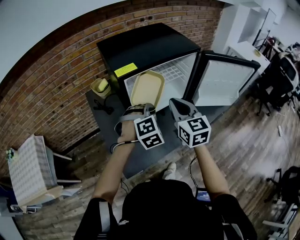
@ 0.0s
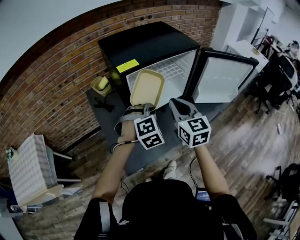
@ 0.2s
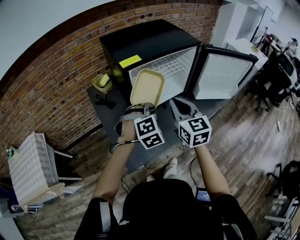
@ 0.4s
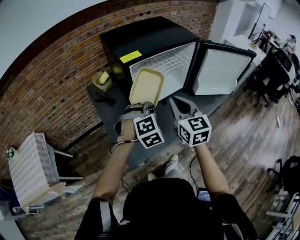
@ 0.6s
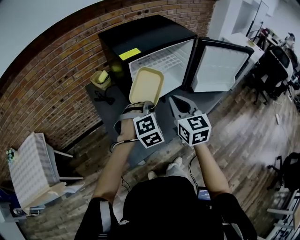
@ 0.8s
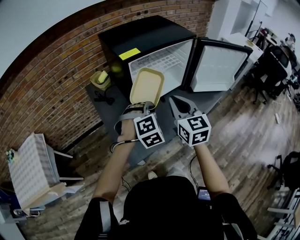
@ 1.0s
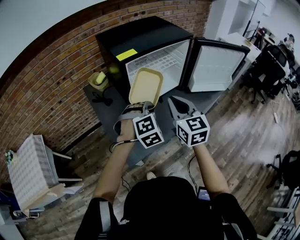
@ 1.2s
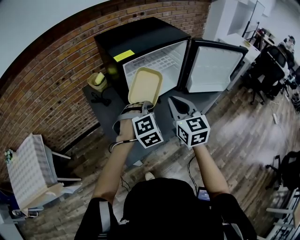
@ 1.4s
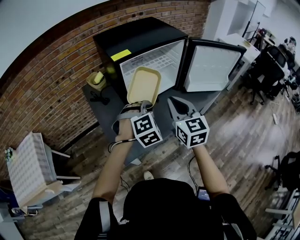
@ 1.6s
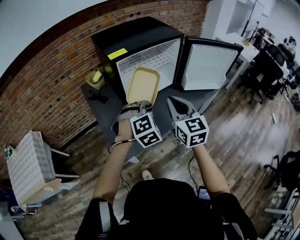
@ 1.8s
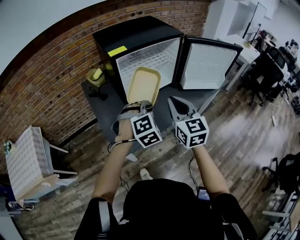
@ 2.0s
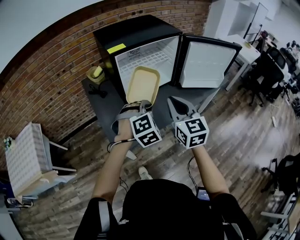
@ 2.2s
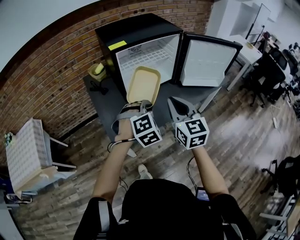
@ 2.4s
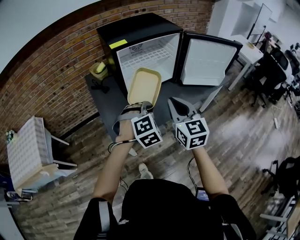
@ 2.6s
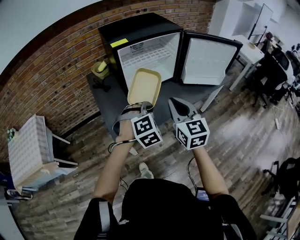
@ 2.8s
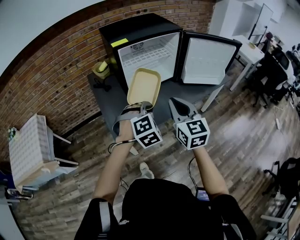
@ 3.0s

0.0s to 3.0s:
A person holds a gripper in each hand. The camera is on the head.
0.0s to 1.6s: Both grippers travel together backward, roughly 10 cm.
1.6s to 3.0s: Both grippers travel together backward, about 10 cm.

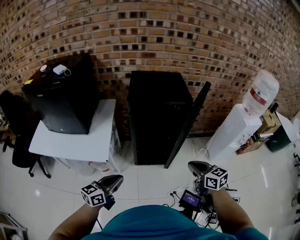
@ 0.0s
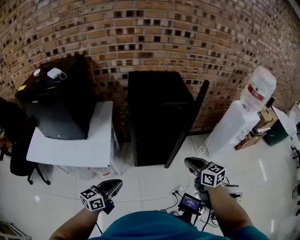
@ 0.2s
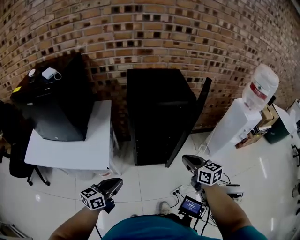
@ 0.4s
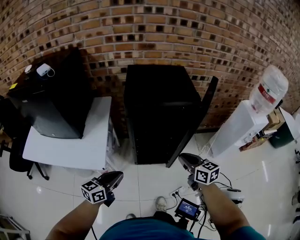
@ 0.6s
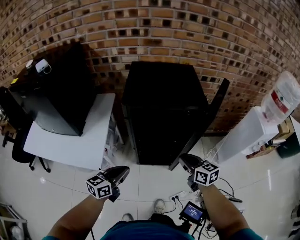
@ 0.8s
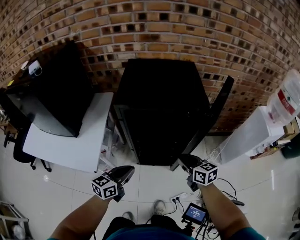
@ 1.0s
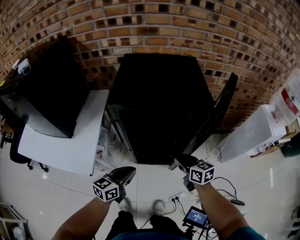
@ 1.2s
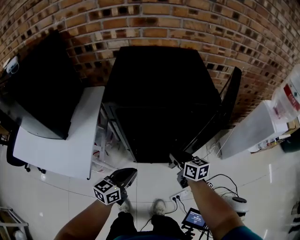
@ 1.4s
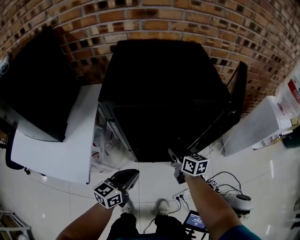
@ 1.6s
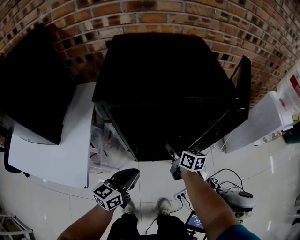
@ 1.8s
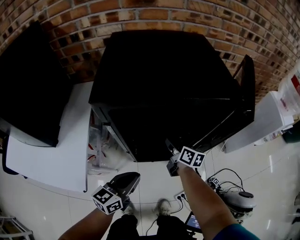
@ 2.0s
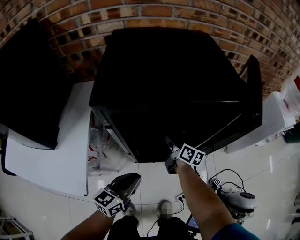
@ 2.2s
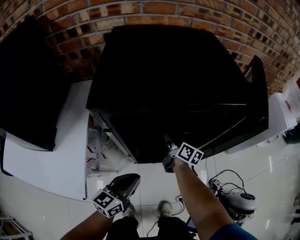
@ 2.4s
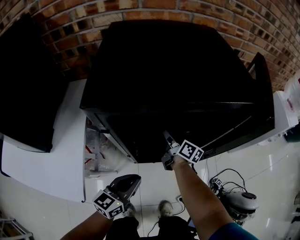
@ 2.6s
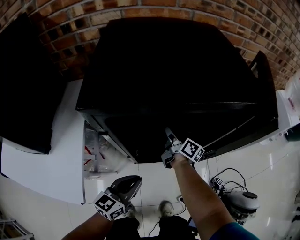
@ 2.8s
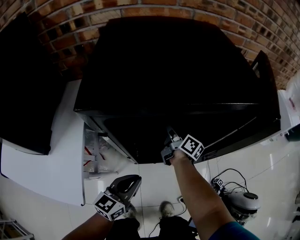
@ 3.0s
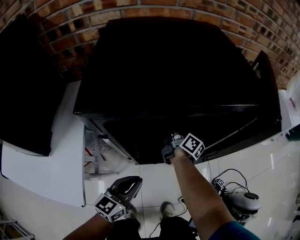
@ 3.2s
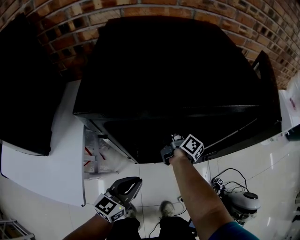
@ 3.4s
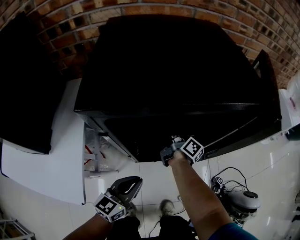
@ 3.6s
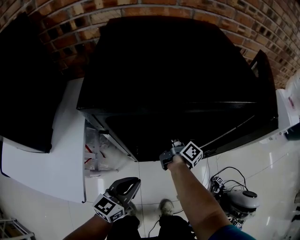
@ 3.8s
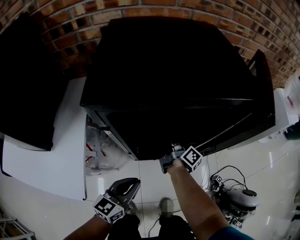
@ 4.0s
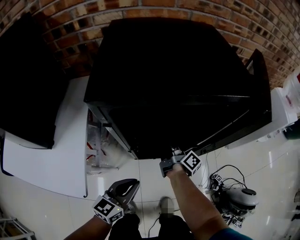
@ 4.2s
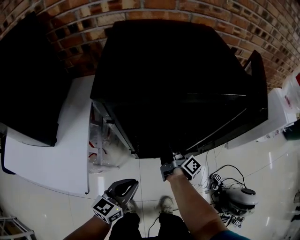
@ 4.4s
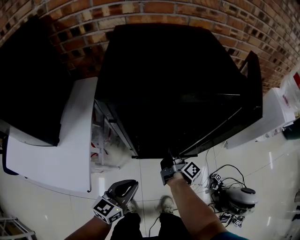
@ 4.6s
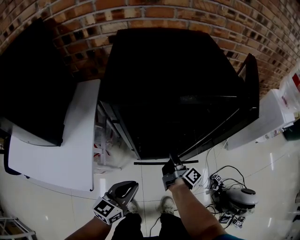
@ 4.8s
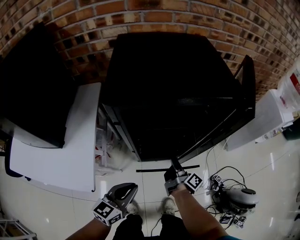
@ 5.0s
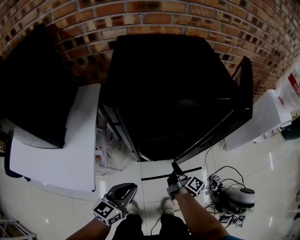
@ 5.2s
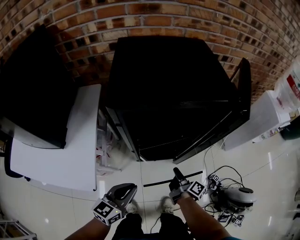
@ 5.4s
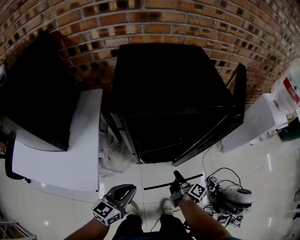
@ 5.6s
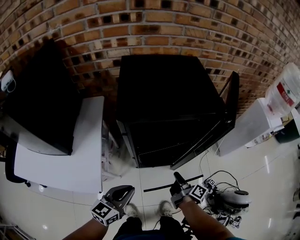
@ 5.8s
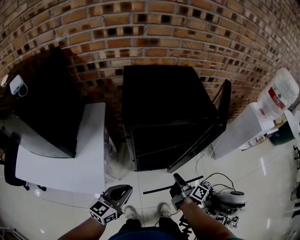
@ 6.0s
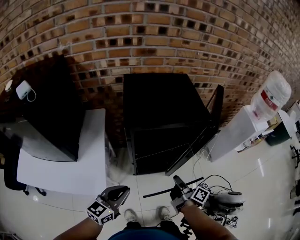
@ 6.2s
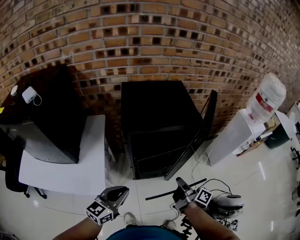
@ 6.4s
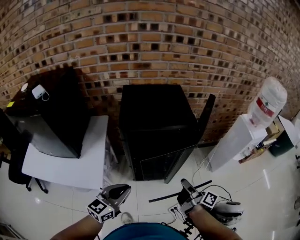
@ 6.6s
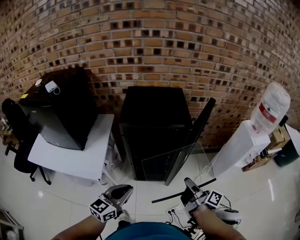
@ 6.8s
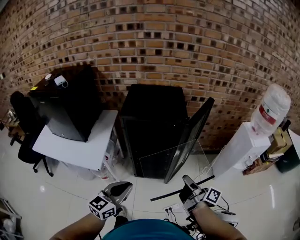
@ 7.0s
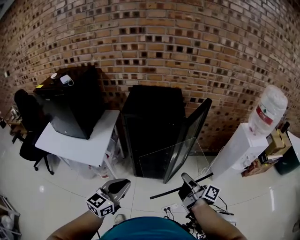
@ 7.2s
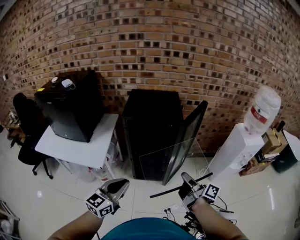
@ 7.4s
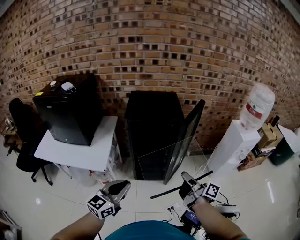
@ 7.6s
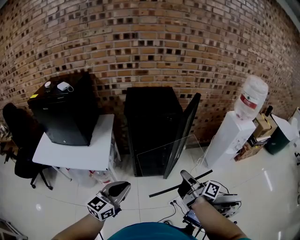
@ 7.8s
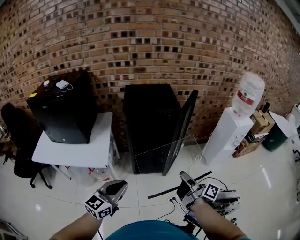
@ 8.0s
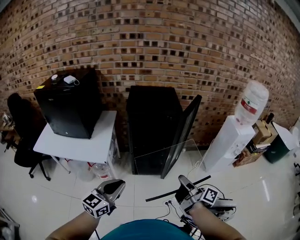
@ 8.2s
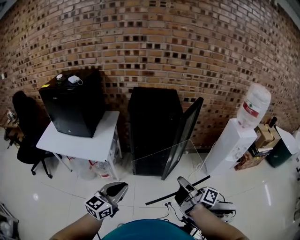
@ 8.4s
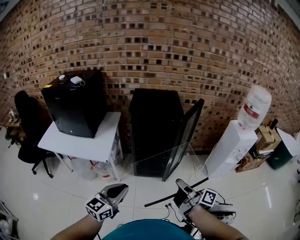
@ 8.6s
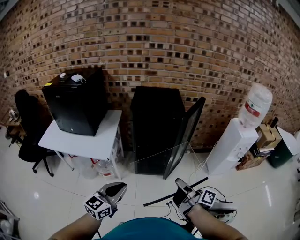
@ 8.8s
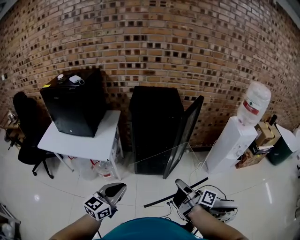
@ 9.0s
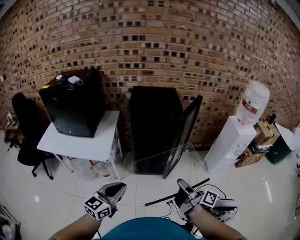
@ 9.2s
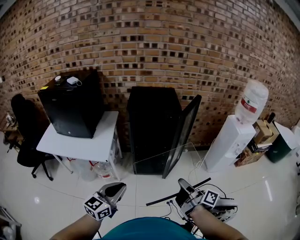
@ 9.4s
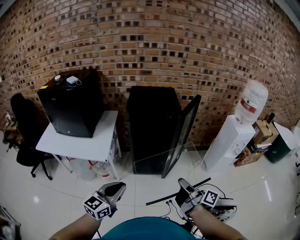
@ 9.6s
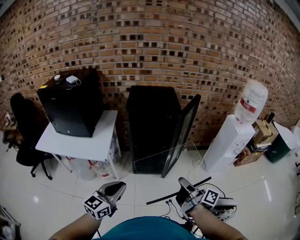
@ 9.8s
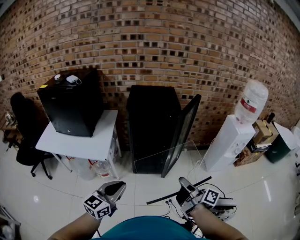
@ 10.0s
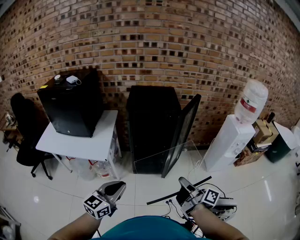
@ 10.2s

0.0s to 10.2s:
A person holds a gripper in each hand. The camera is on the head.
0.0s to 1.4s: The left gripper shifts about 25 cm forward, downward and to the right. Meanwhile the right gripper travels forward and downward by approximately 30 cm, and opens.
1.4s to 3.0s: The left gripper travels downward by roughly 5 cm, while the right gripper shifts about 20 cm forward and downward, turns by approximately 50 degrees, and opens its fingers.
3.0s to 4.4s: The left gripper travels backward by roughly 5 cm; the right gripper travels backward by roughly 10 cm, changes its angle by some 20 degrees, and closes.
4.4s to 5.8s: The left gripper heads upward, covering about 10 cm. The right gripper is displaced backward and to the right by roughly 15 cm.
5.8s to 7.2s: The left gripper heads upward, backward and to the right, covering some 25 cm; the right gripper travels upward, to the right and backward by some 35 cm, and turns by about 30 degrees.
7.2s to 8.8s: The grippers both shift backward and to the left by approximately 15 cm.
8.8s to 10.2s: The grippers make only small movements.

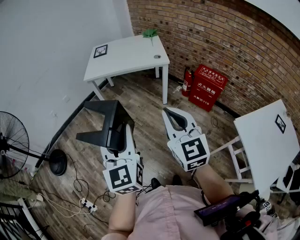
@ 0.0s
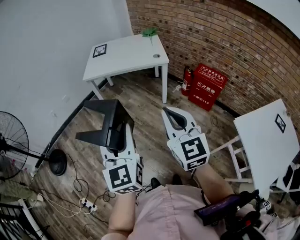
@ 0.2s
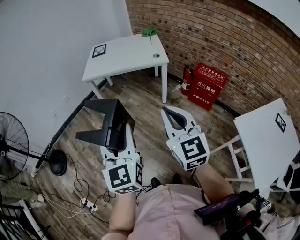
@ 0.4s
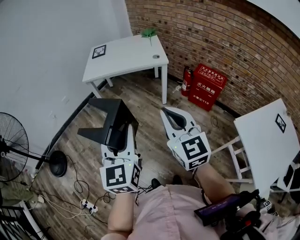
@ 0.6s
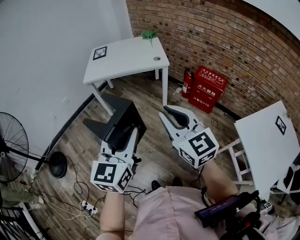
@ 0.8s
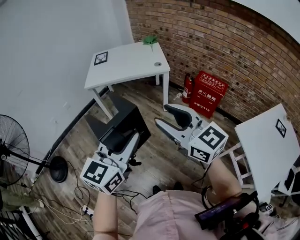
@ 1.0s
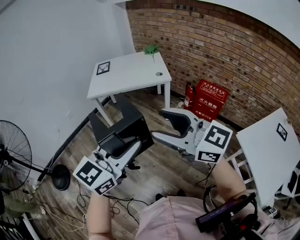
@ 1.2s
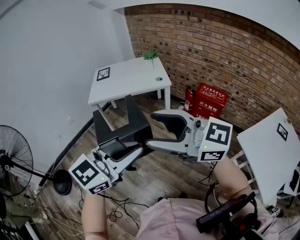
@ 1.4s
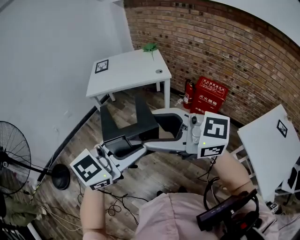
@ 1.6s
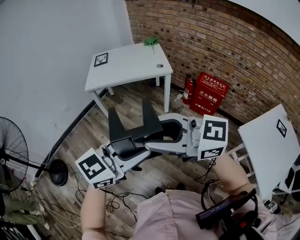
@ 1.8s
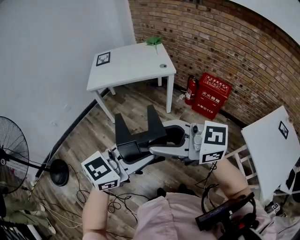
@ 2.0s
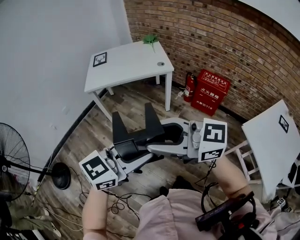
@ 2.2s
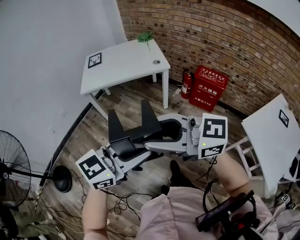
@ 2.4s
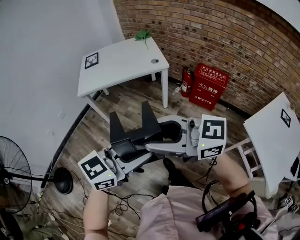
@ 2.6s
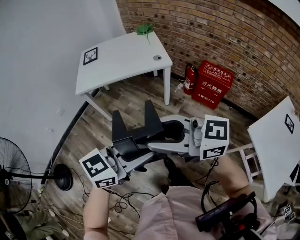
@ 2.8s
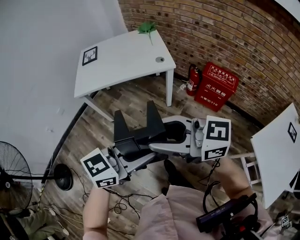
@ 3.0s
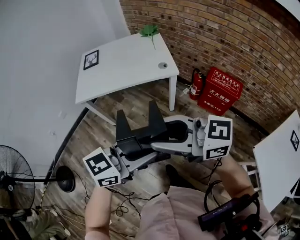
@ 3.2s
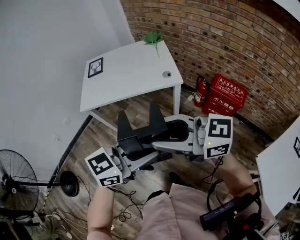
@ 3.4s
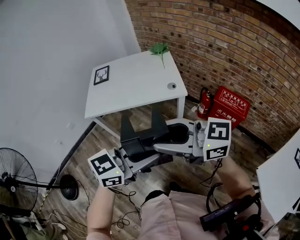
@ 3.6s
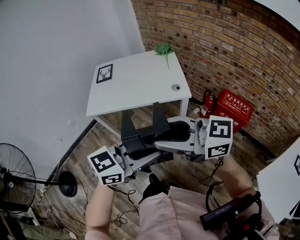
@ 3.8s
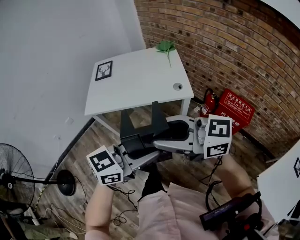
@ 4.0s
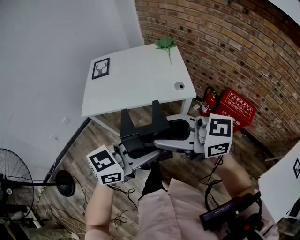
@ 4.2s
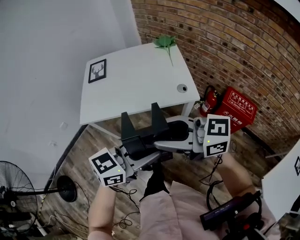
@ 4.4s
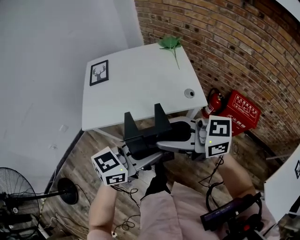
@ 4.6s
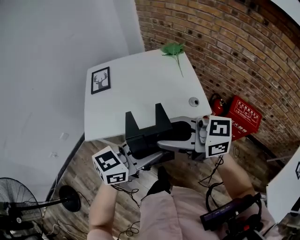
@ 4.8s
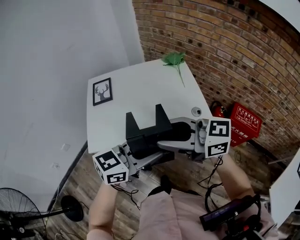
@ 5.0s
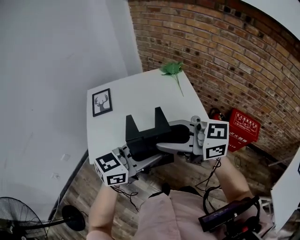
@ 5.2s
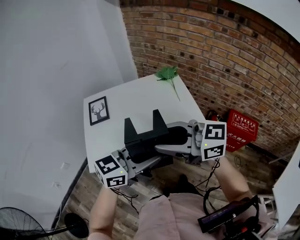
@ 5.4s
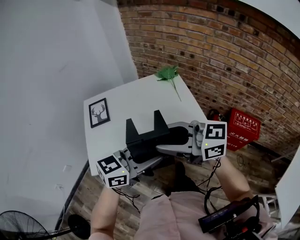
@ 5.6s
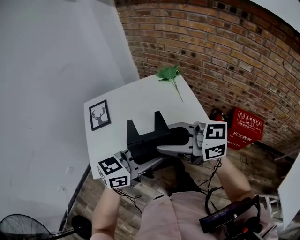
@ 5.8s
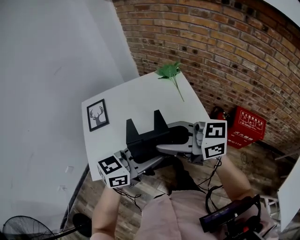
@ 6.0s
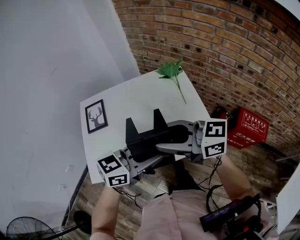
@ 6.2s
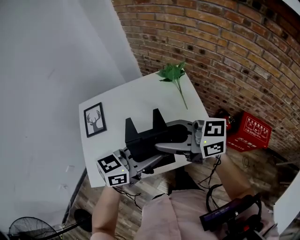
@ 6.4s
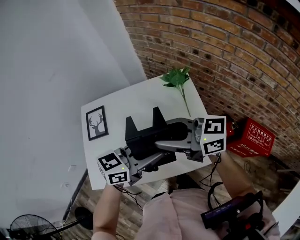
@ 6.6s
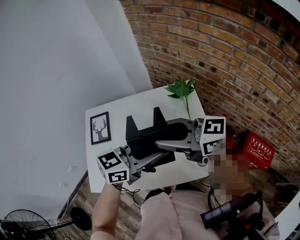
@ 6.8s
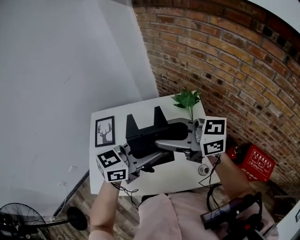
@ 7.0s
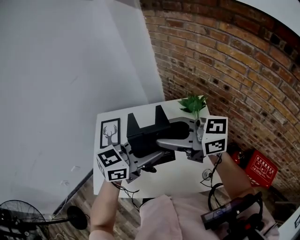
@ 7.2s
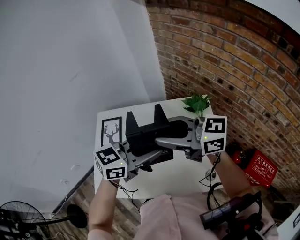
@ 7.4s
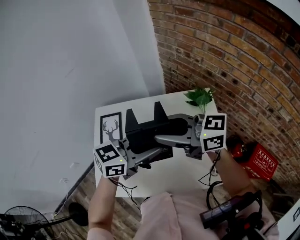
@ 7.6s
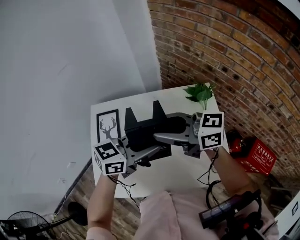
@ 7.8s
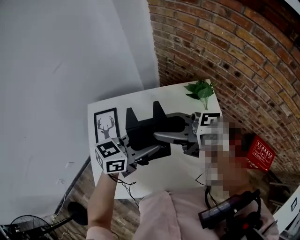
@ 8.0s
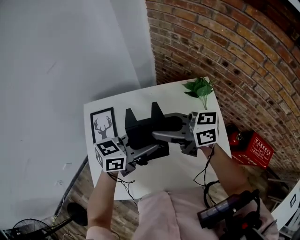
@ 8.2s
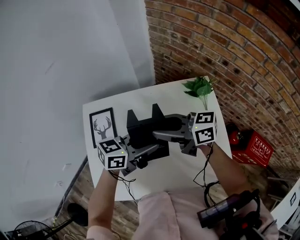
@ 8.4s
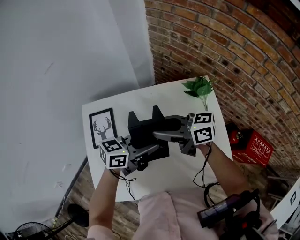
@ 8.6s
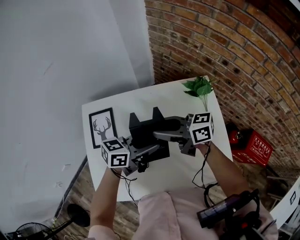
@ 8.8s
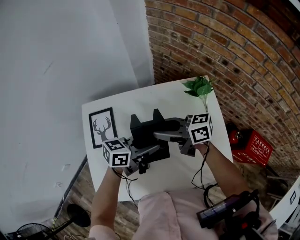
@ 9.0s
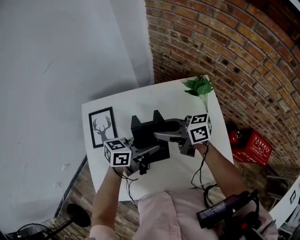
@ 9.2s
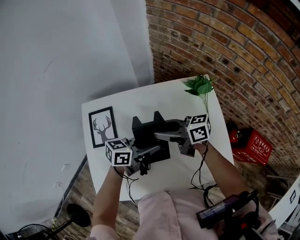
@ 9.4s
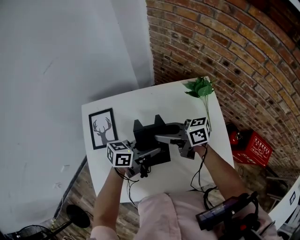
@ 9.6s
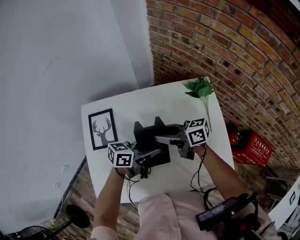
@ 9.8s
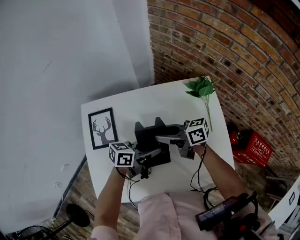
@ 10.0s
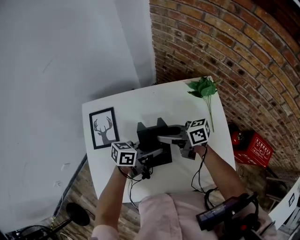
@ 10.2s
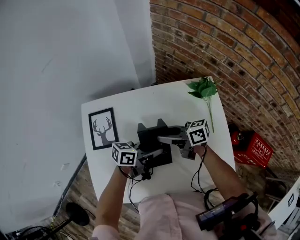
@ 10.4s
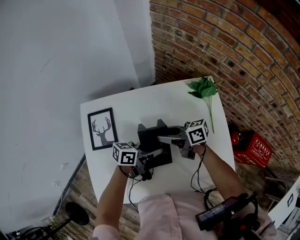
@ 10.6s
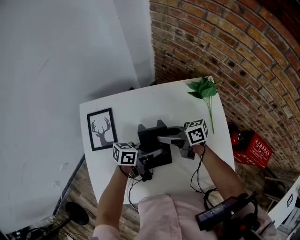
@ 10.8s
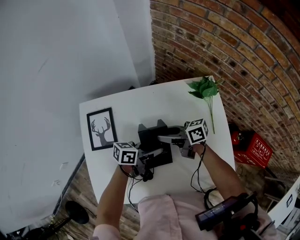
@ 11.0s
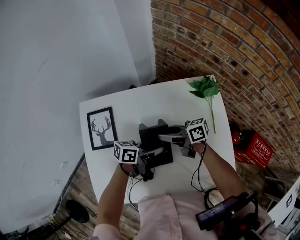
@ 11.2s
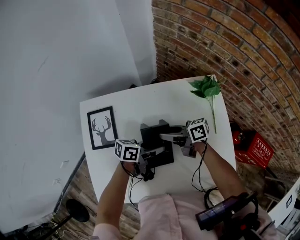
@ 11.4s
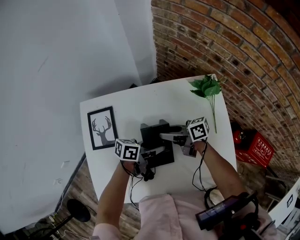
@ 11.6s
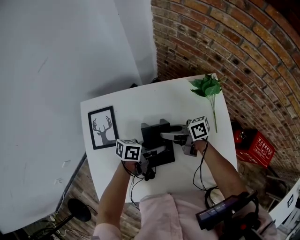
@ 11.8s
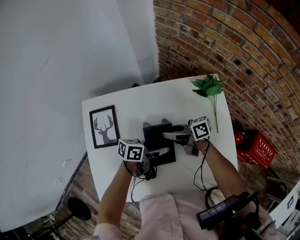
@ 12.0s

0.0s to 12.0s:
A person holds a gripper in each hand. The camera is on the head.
0.0s to 1.6s: The right gripper shifts by roughly 15 cm, swivels about 50 degrees, and opens up; the left gripper moves approximately 5 cm, and rotates some 60 degrees.
1.6s to 3.0s: The left gripper changes place by approximately 20 cm, and rotates roughly 20 degrees, while the right gripper shifts by about 20 cm, and closes.
3.0s to 4.4s: The left gripper moves about 25 cm; the right gripper moves approximately 25 cm.
4.4s to 6.0s: The right gripper moves approximately 25 cm, while the left gripper changes place by some 25 cm.
6.0s to 7.6s: The left gripper changes place by some 25 cm; the right gripper changes place by roughly 25 cm.
7.6s to 9.0s: The grippers both shift downward by about 15 cm. The left gripper rotates some 20 degrees, while the right gripper rotates about 20 degrees.
9.0s to 10.4s: The grippers both shift downward by roughly 10 cm.
10.4s to 12.0s: There are only small adjustments of the grippers.
